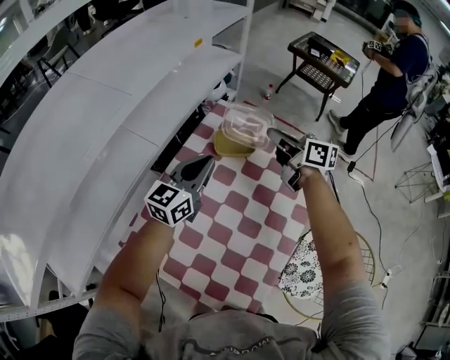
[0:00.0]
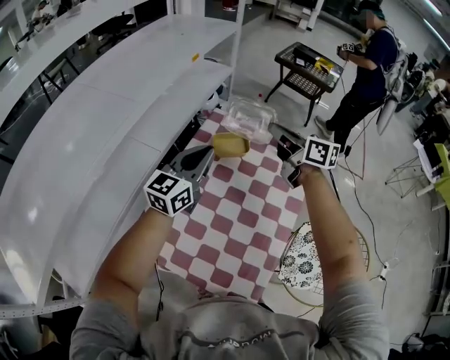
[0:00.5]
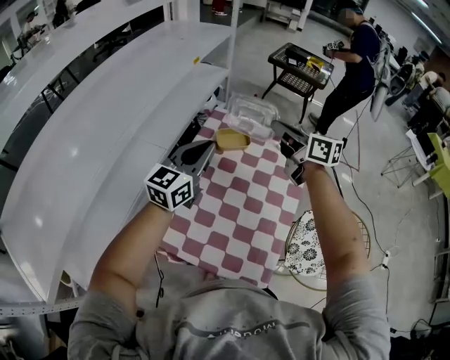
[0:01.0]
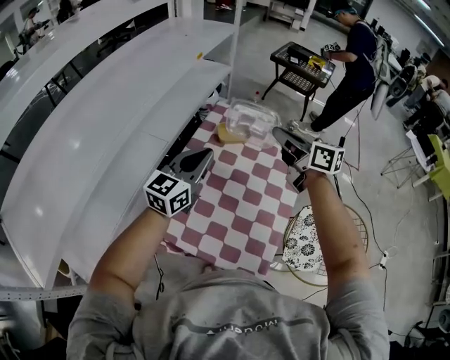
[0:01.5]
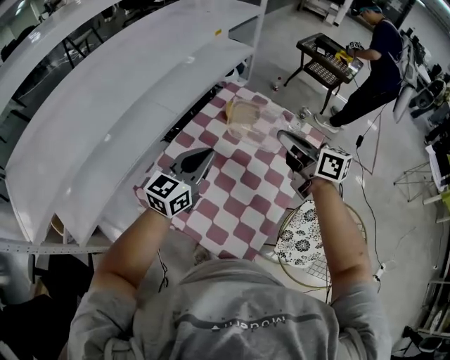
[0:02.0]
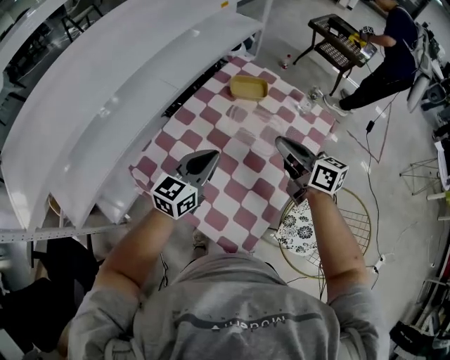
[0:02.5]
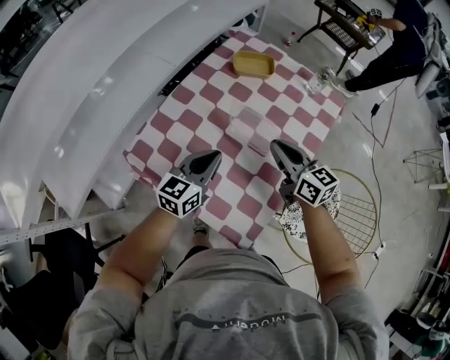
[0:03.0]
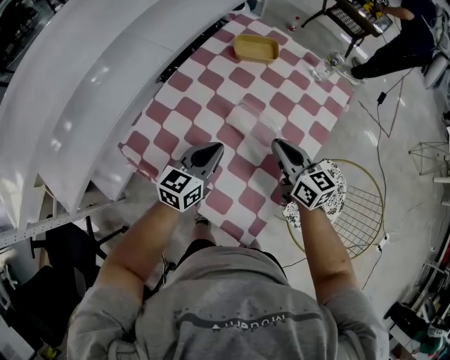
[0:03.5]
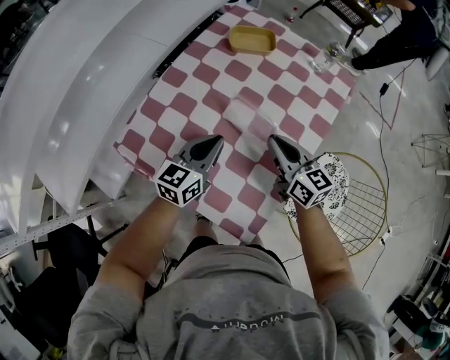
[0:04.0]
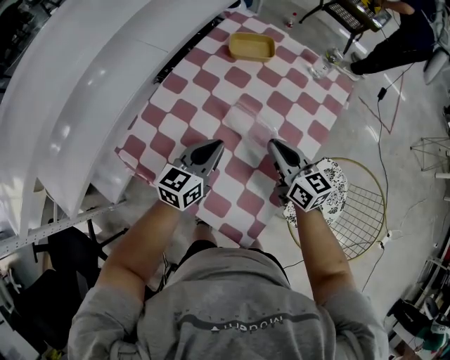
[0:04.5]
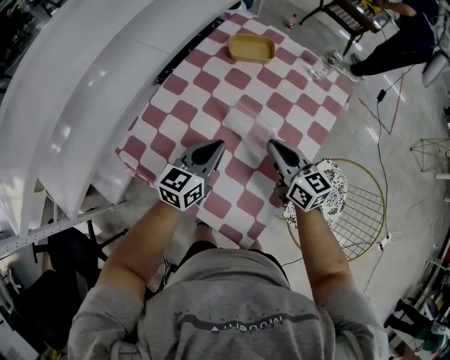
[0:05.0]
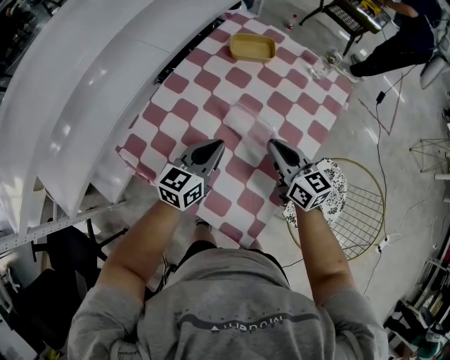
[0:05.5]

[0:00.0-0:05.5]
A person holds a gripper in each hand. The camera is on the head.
0:00.0 to 0:02.0: The right gripper shifts approximately 25 cm backward and upward, while the left gripper moves backward, about 20 cm.
0:02.0 to 0:03.5: The two grippers go approximately 20 cm downward.
0:03.5 to 0:05.5: The grippers make only small movements.

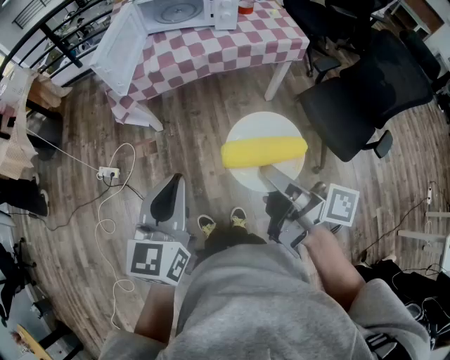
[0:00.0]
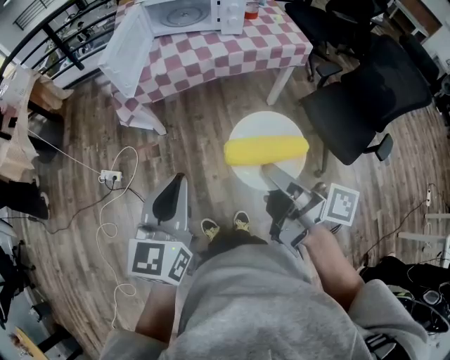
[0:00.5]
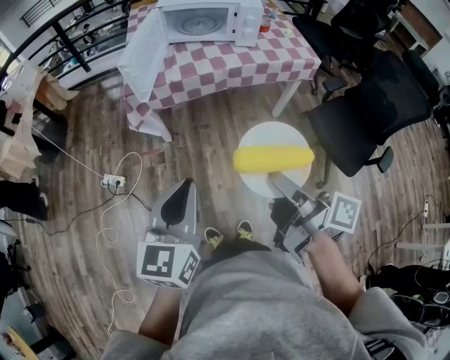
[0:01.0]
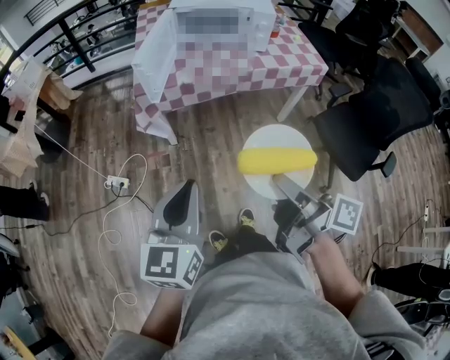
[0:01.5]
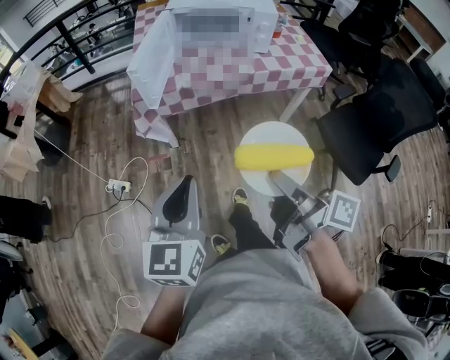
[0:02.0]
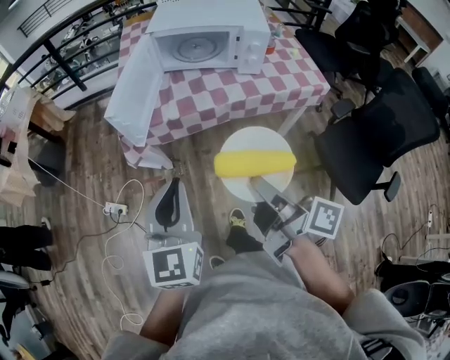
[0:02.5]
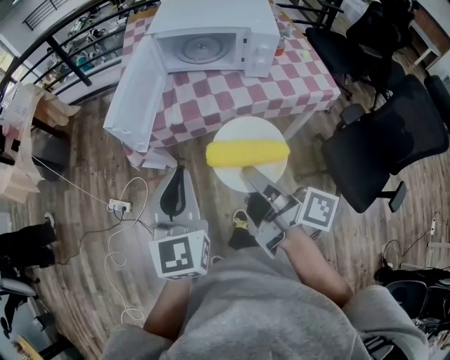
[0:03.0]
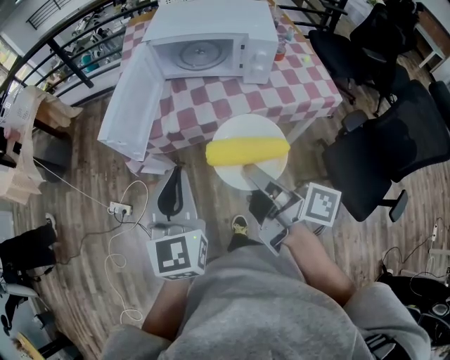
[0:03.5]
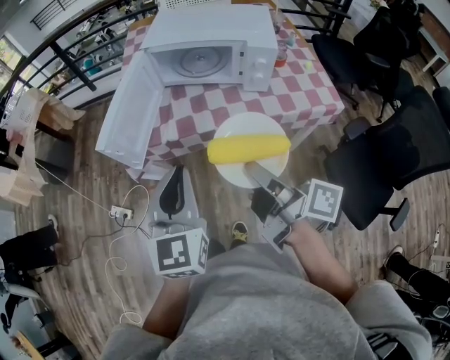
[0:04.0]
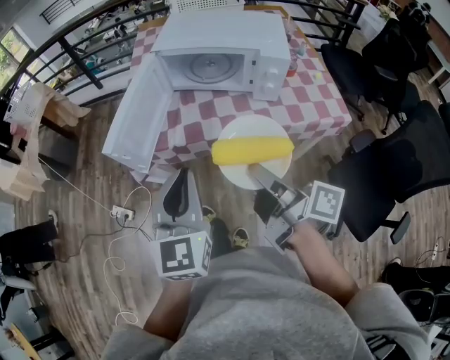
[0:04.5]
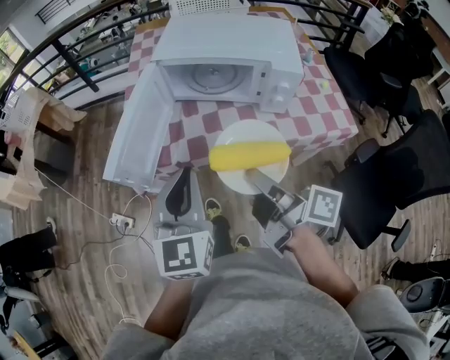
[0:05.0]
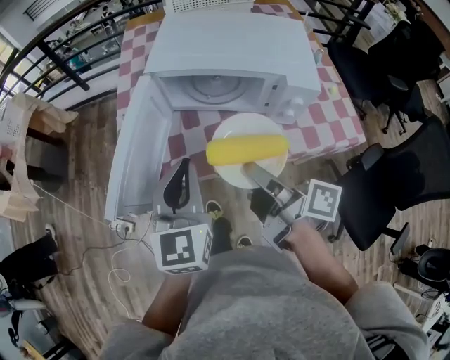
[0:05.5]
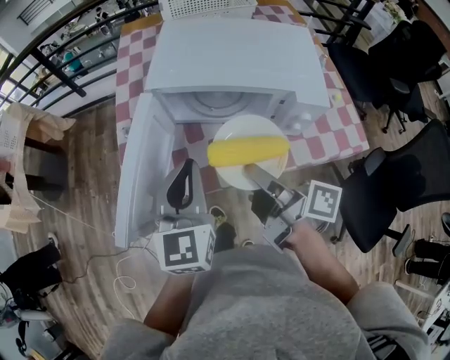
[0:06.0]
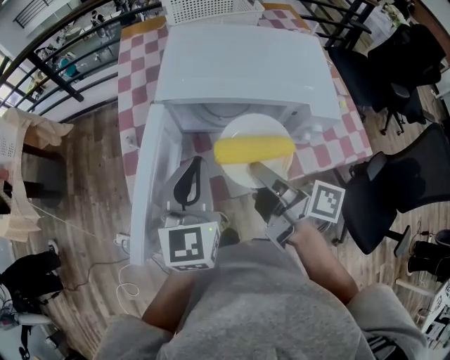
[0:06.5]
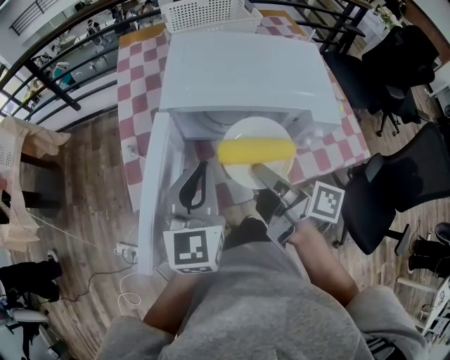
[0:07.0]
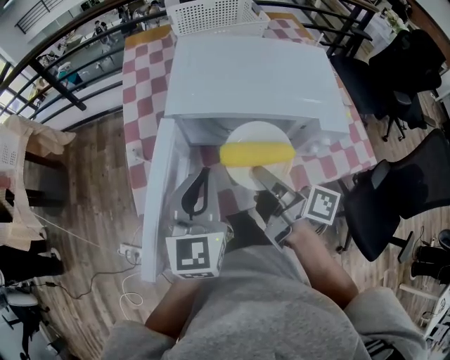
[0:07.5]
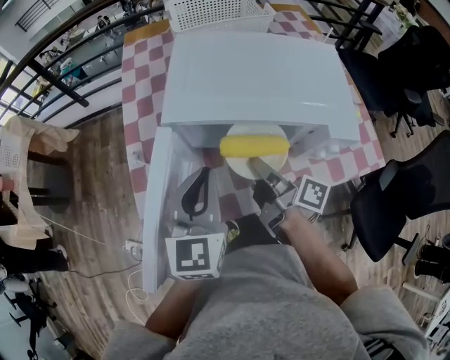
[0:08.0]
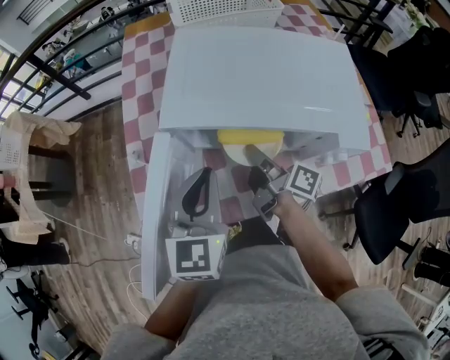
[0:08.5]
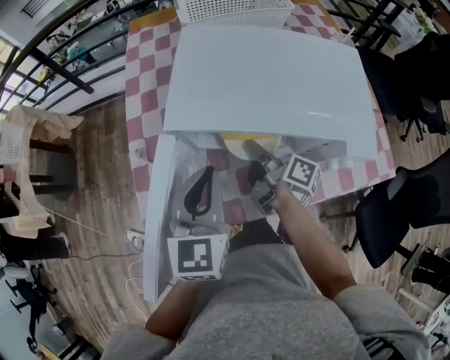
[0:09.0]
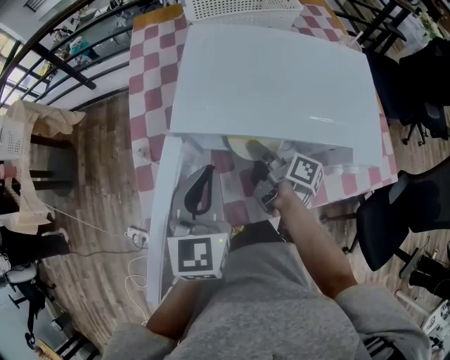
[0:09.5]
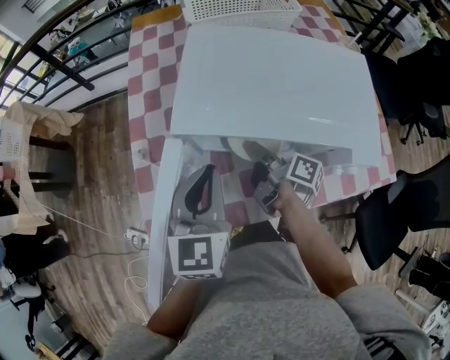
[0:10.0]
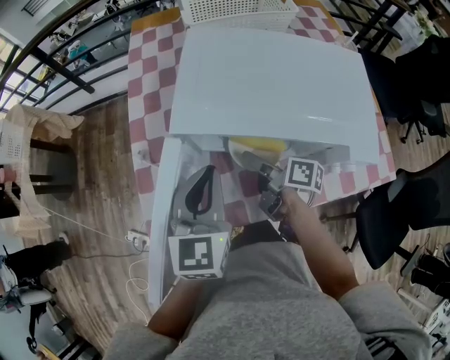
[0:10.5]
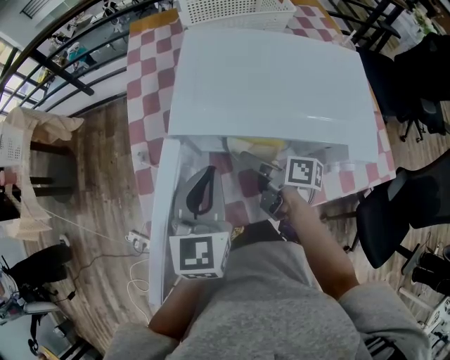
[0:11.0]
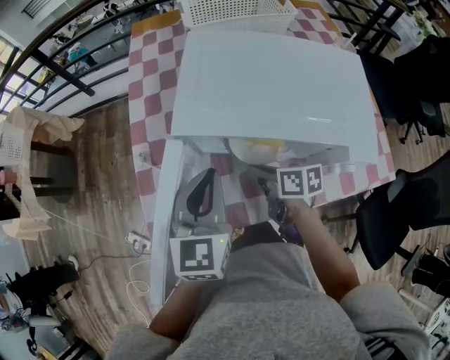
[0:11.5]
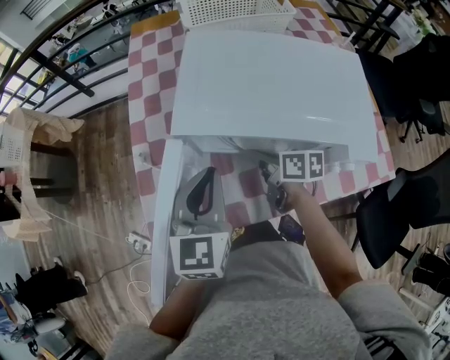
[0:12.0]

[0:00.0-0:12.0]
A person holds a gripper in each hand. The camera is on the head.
0:00.0 to 0:02.0: Both grippers move to the left and forward, approximately 10 cm.
0:02.0 to 0:04.0: Both grippers move forward and to the right, about 25 cm.
0:04.0 to 0:06.0: Both grippers travel together forward, about 25 cm.
0:06.0 to 0:08.0: The right gripper travels forward and downward by some 15 cm, while the left gripper travels forward by roughly 10 cm.
0:08.0 to 0:10.0: The left gripper shifts by some 5 cm. Meanwhile the right gripper goes approximately 10 cm forward and downward.
0:10.0 to 0:12.0: The right gripper swivels about 40 degrees, and opens and closes again.

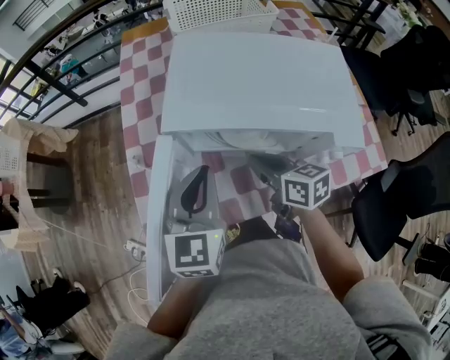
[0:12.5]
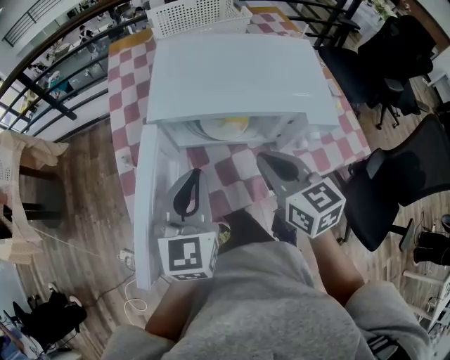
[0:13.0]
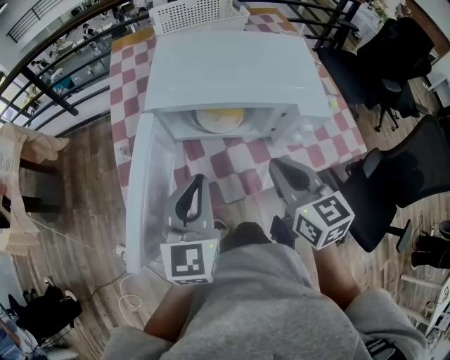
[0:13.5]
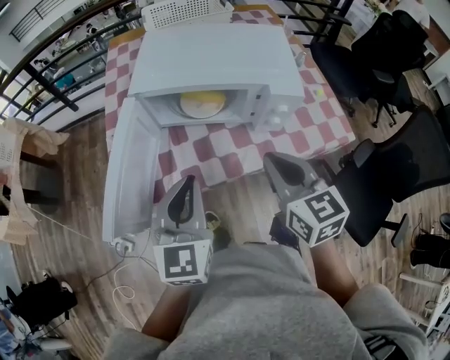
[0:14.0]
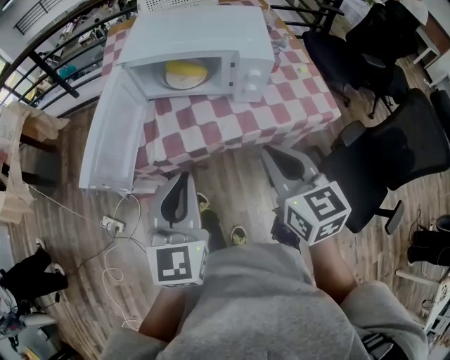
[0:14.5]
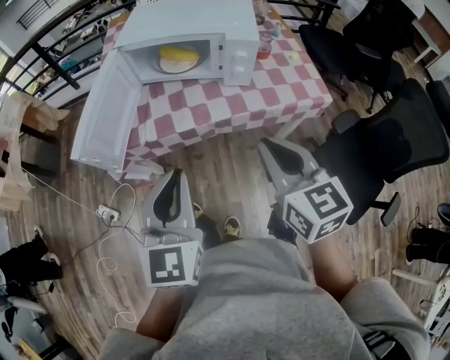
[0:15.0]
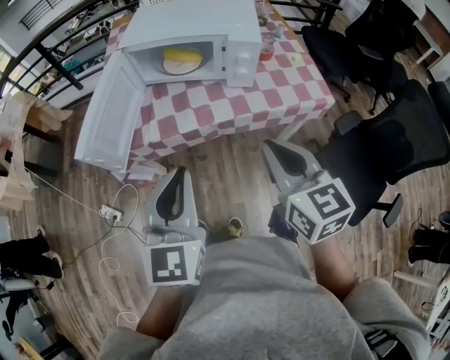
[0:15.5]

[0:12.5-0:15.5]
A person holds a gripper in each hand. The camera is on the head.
0:12.5 to 0:14.0: The left gripper is displaced backward by about 15 cm. The right gripper travels backward, upward and to the right by some 25 cm, and rotates approximately 30 degrees.
0:14.0 to 0:15.5: Both grippers move backward, about 20 cm.

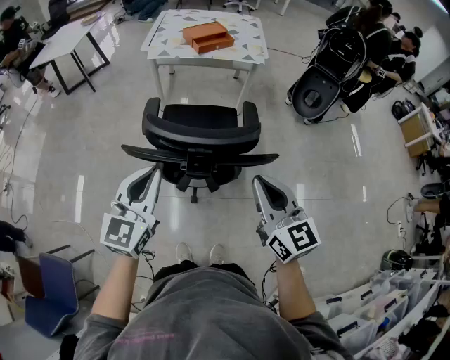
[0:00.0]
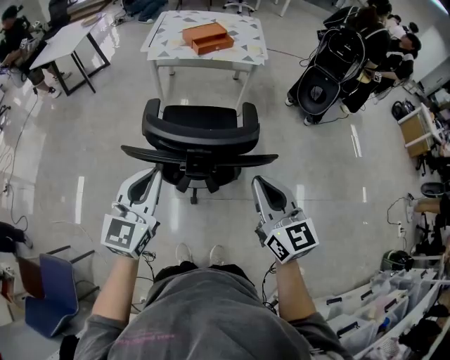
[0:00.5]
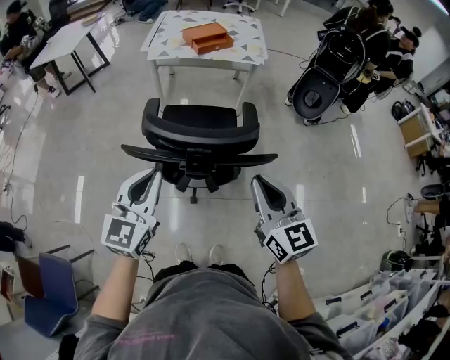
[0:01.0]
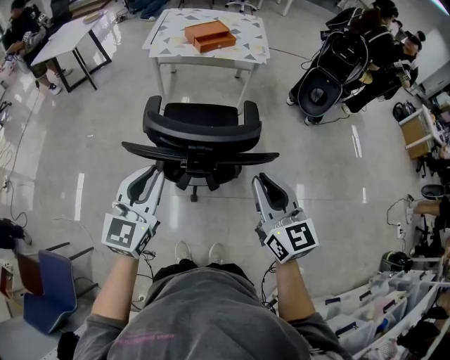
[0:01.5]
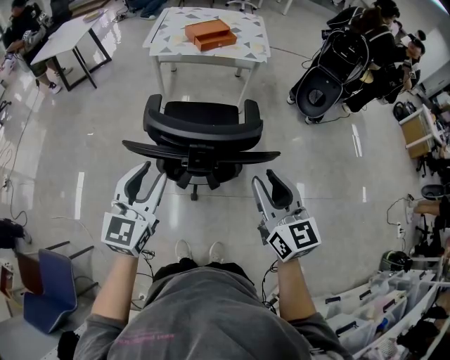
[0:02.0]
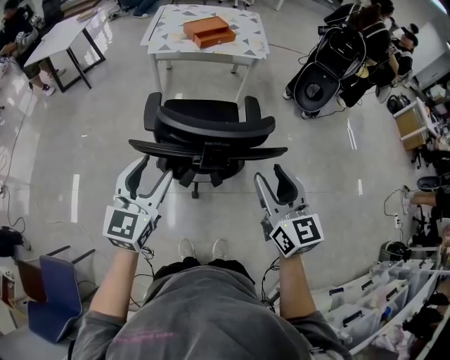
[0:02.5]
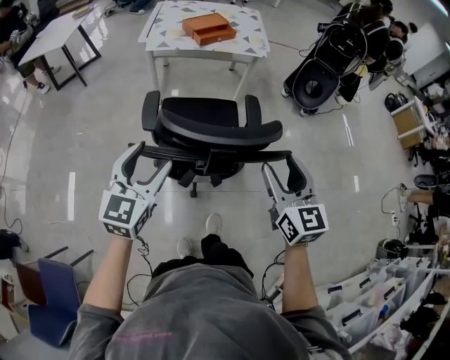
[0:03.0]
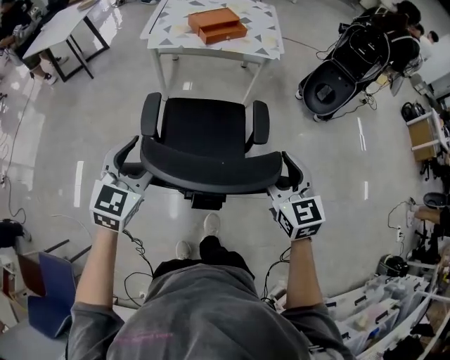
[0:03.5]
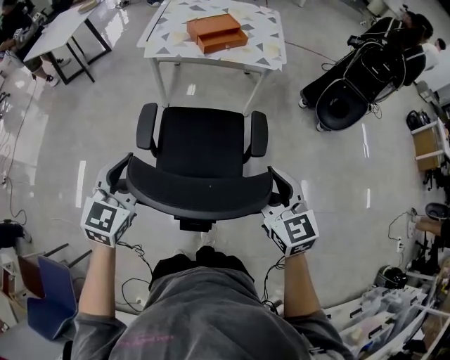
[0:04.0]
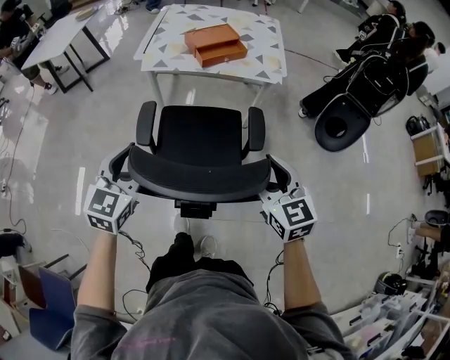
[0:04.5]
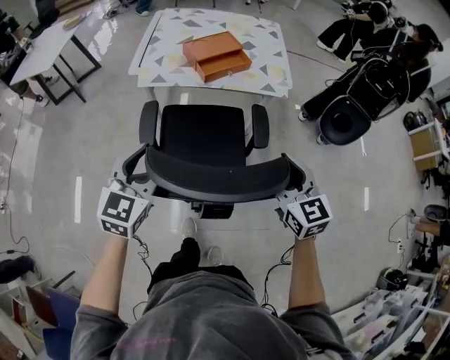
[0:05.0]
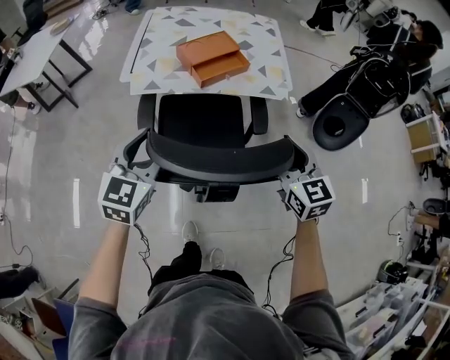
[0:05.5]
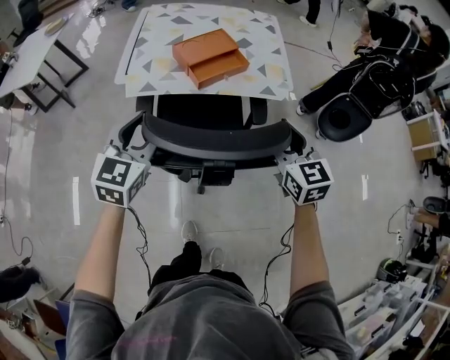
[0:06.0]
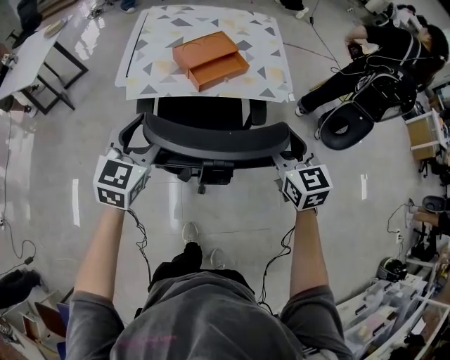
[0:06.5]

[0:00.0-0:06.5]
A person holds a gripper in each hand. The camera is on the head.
0:00.0 to 0:02.0: The right gripper opens its fingers. Meanwhile the left gripper opens its fingers.
0:02.0 to 0:04.5: Both grippers move forward, about 30 cm. The right gripper opens up.
0:04.5 to 0:06.5: Both grippers move forward, about 25 cm.
